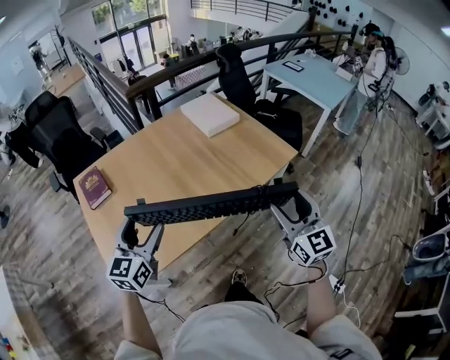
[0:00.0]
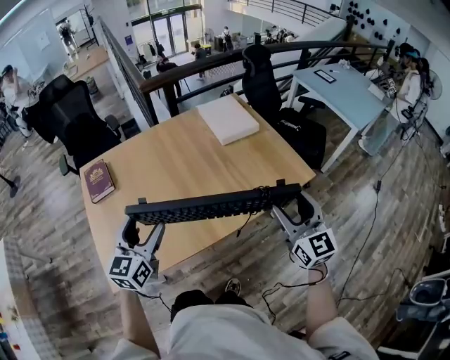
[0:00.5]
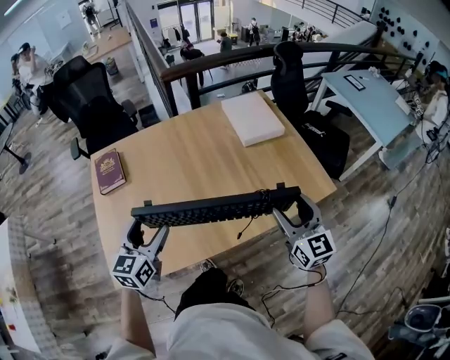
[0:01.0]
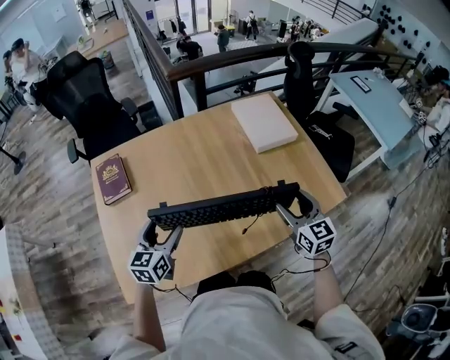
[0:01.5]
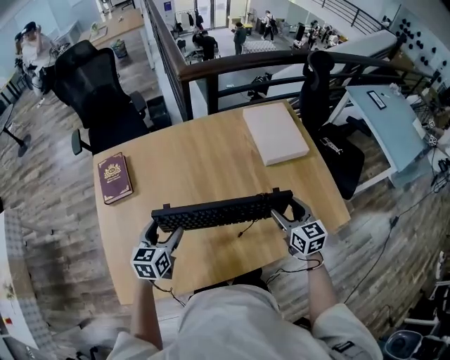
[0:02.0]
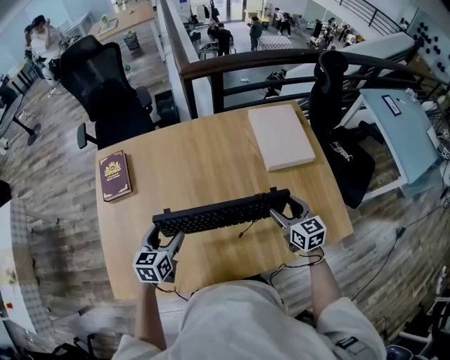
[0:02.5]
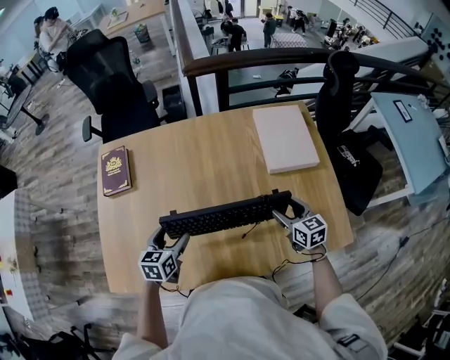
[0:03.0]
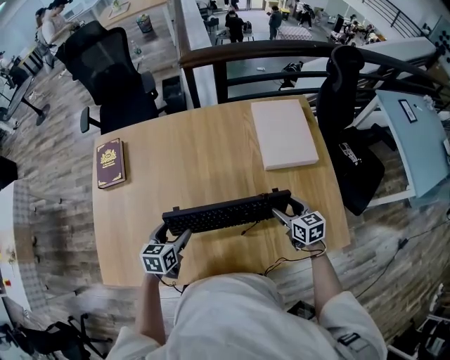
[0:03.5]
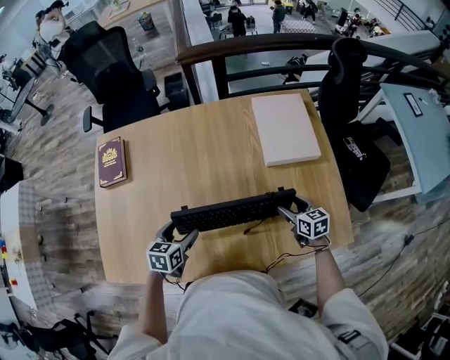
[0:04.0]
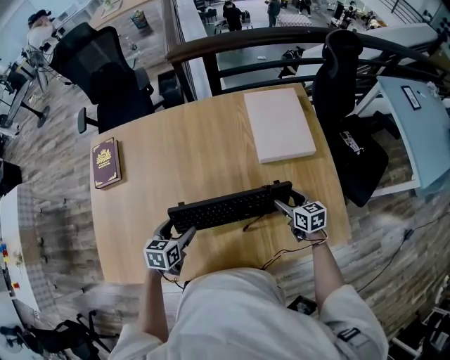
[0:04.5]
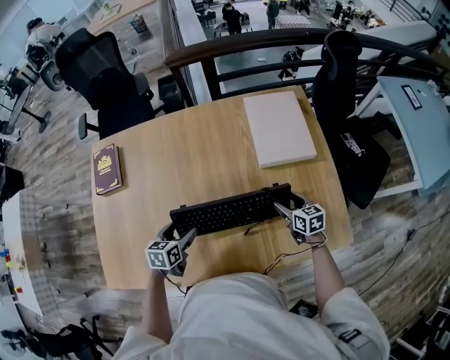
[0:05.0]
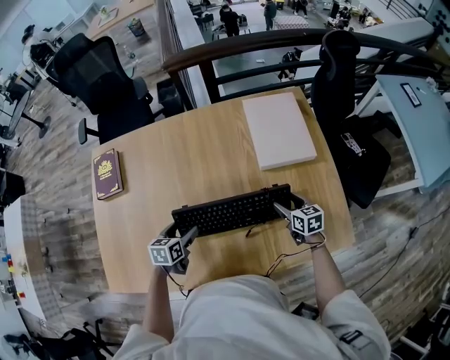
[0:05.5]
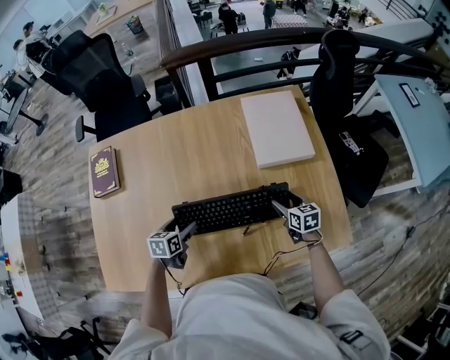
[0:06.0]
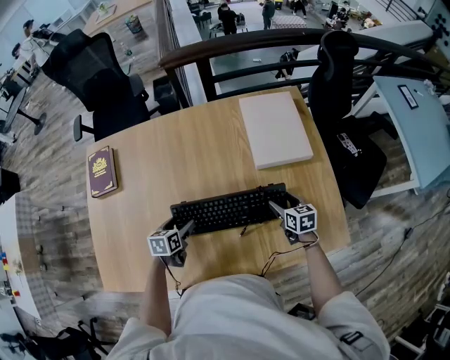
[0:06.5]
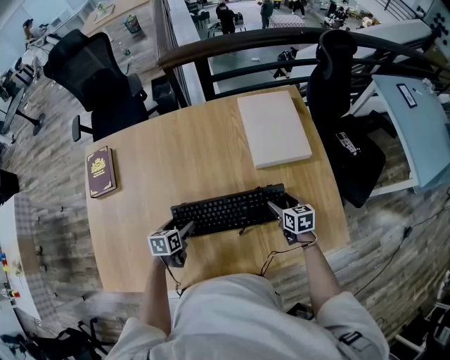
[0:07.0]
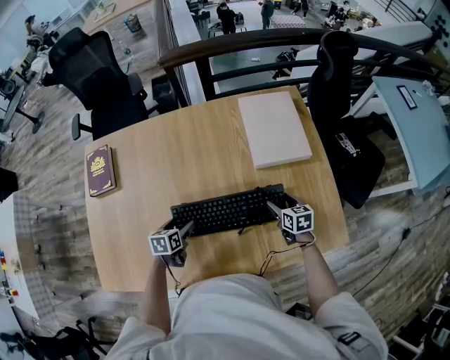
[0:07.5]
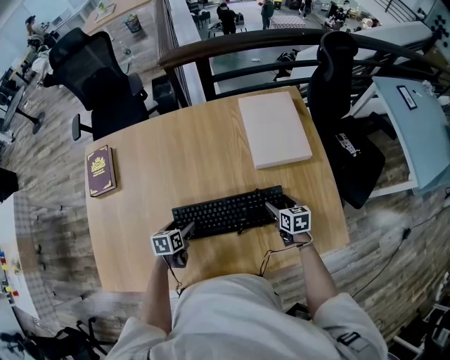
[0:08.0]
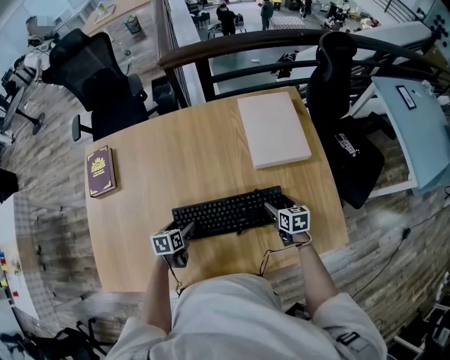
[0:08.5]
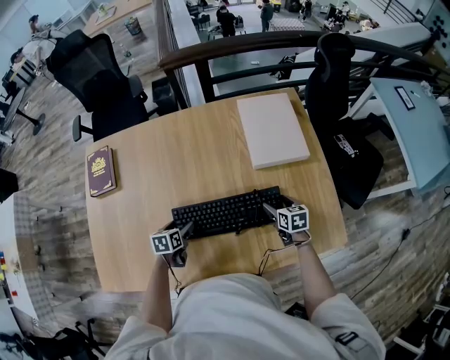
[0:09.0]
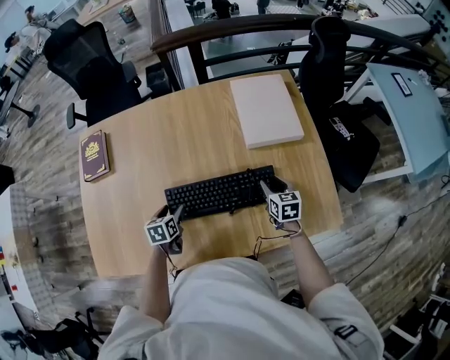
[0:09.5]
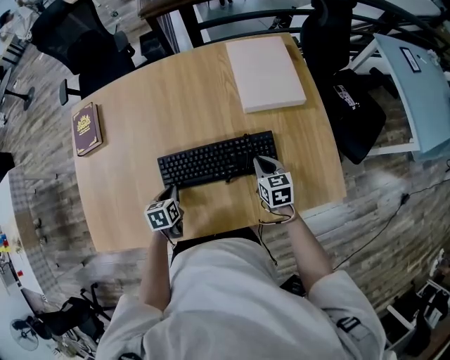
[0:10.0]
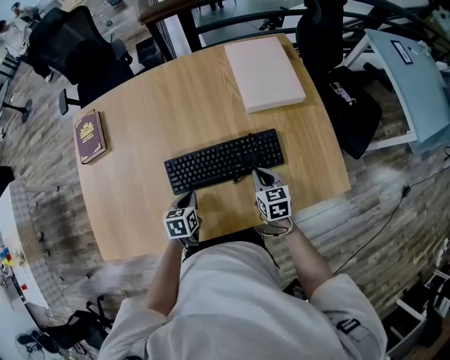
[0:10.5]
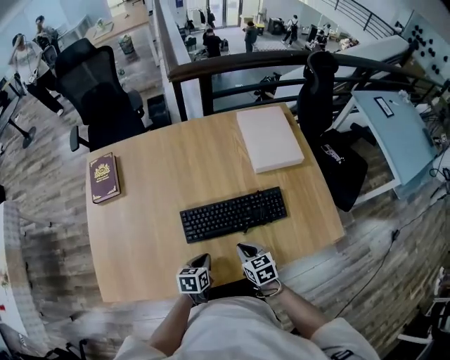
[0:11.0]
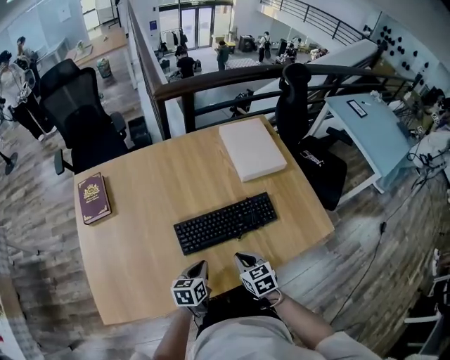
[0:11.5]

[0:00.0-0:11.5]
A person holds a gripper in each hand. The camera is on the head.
0:00.0 to 0:02.0: The right gripper goes some 40 cm forward and downward, and rotates some 30 degrees. Meanwhile the left gripper goes roughly 25 cm forward and downward, and swivels roughly 30 degrees.
0:02.0 to 0:04.0: The right gripper heads downward and to the right, covering about 20 cm, and rotates about 20 degrees. The left gripper goes roughly 15 cm to the right and downward.
0:04.0 to 0:06.0: The left gripper travels downward by some 5 cm.
0:06.0 to 0:07.5: The grippers make only small movements.
0:07.5 to 0:09.5: The right gripper closes.
0:09.5 to 0:11.5: The left gripper heads backward and to the right, covering approximately 10 cm, rotates about 20 degrees, and closes. Meanwhile the right gripper is displaced to the left and backward by about 25 cm, and closes.

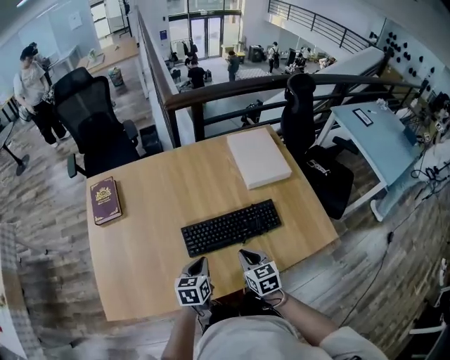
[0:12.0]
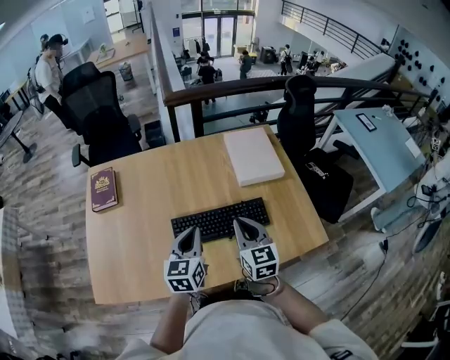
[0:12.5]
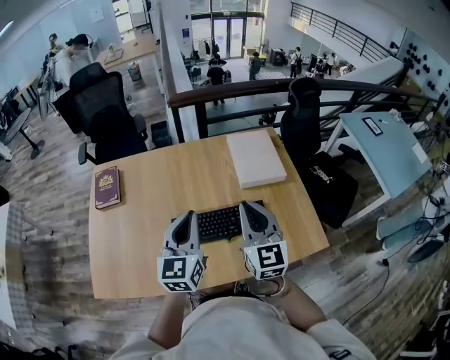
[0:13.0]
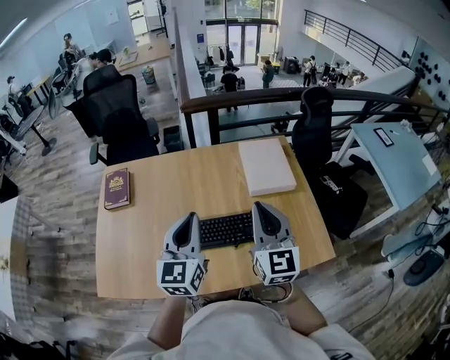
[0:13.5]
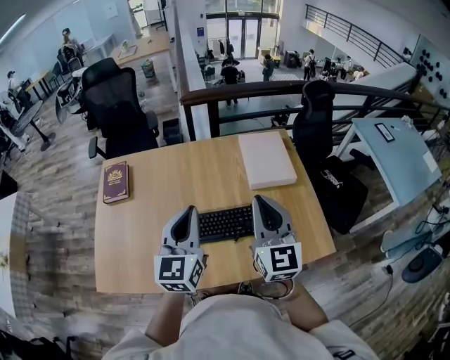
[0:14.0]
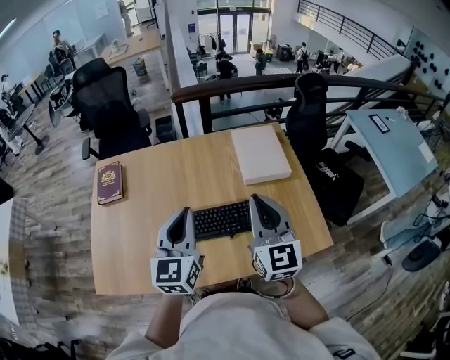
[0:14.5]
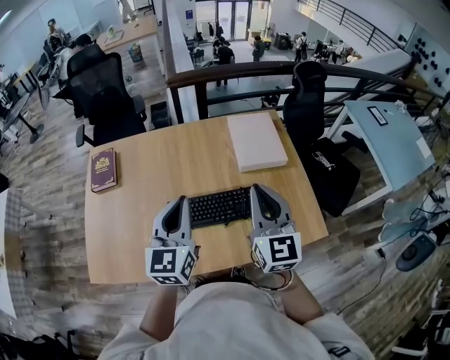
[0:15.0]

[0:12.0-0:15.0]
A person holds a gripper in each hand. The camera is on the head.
0:12.0 to 0:13.5: The grippers both shift upward by about 30 cm. The left gripper tilts its fingers approximately 30 degrees upward; the right gripper tips its fingers upward by about 40 degrees.
0:13.5 to 0:15.0: The grippers make only small movements.

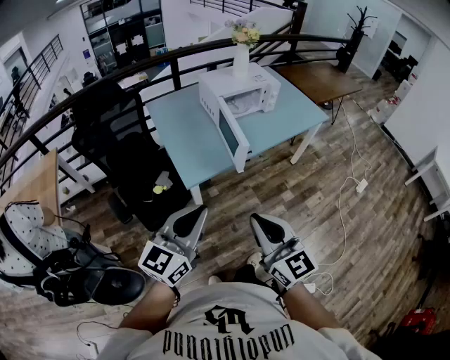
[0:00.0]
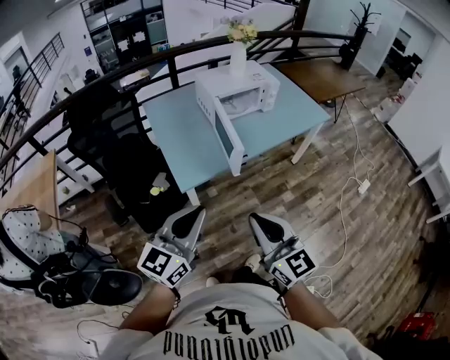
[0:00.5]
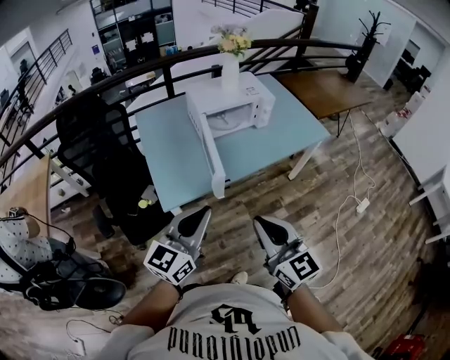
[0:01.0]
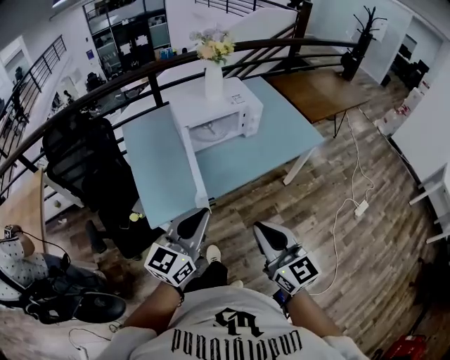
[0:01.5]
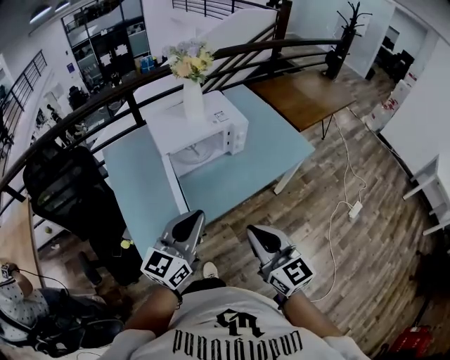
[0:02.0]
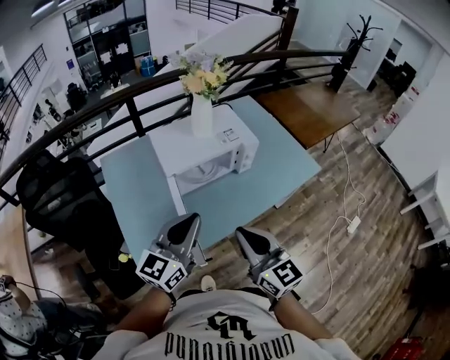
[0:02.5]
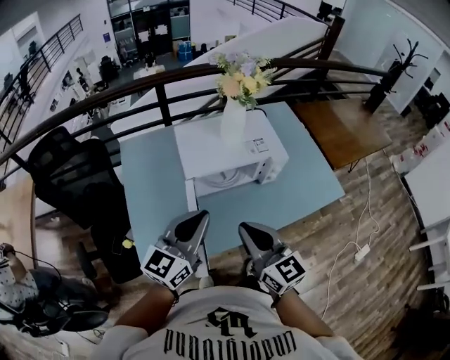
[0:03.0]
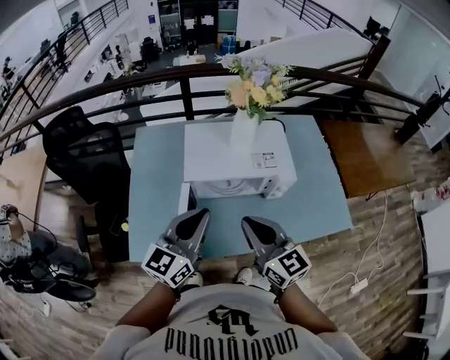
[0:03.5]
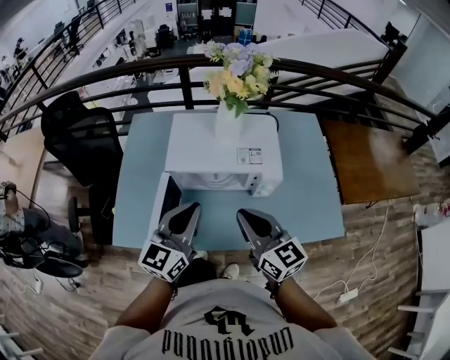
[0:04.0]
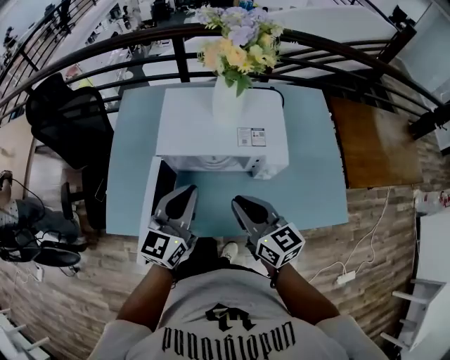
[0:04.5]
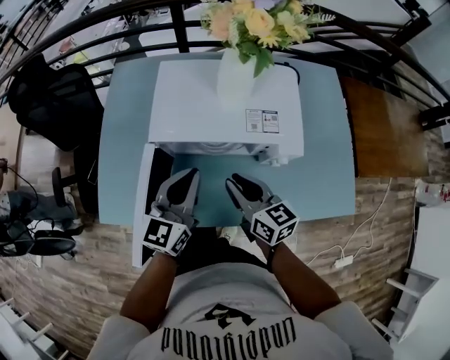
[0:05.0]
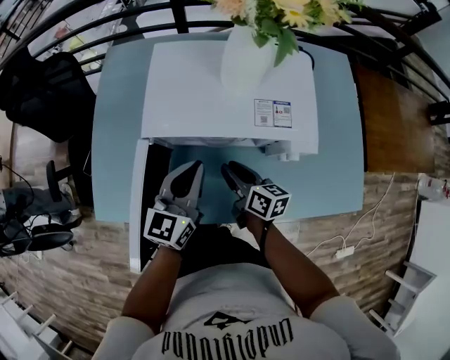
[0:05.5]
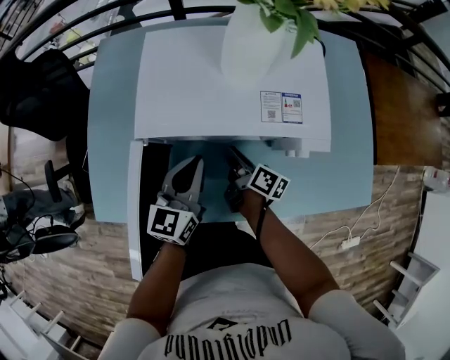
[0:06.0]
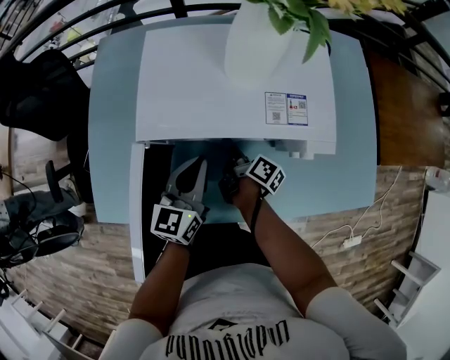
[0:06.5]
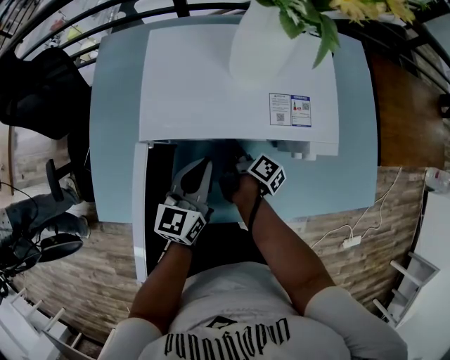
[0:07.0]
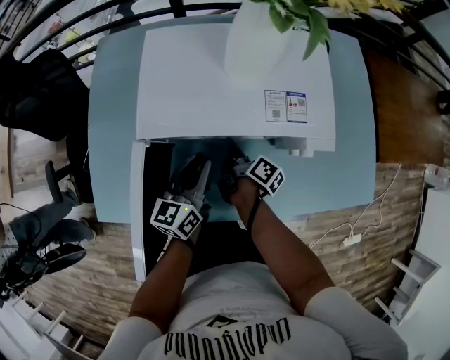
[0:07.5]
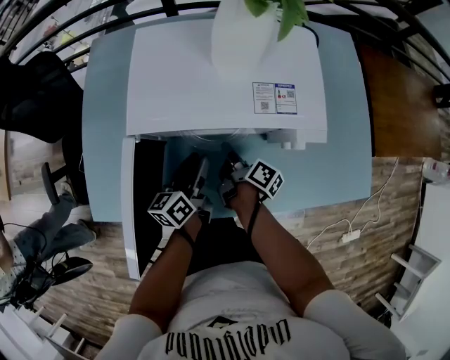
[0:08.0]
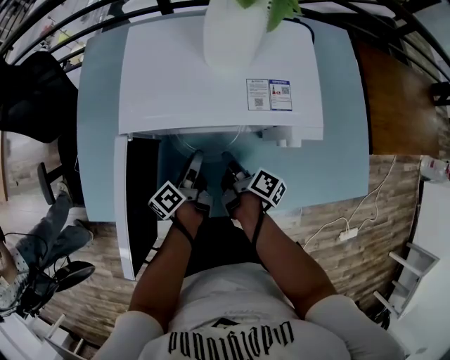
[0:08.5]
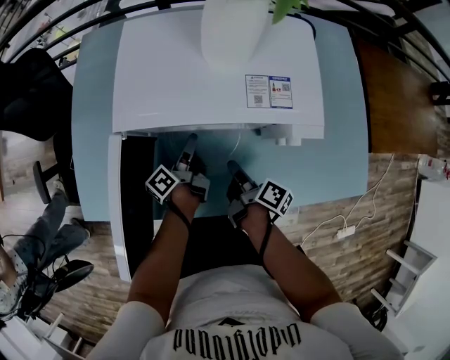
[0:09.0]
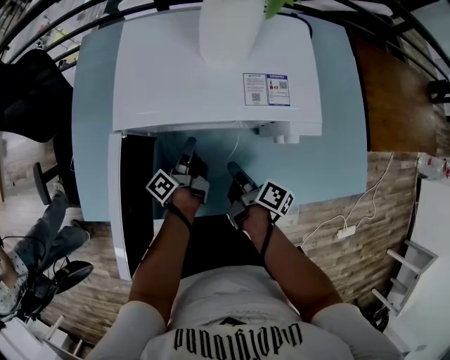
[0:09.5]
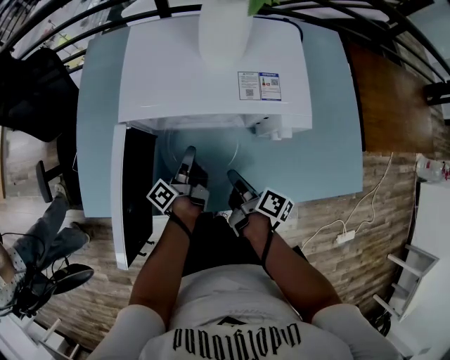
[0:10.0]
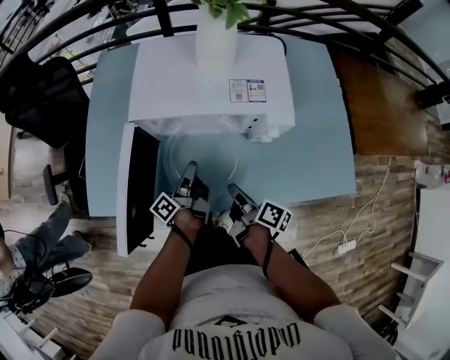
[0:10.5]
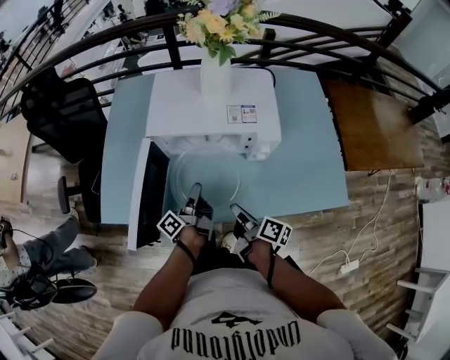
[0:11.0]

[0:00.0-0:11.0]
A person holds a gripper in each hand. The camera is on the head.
0:00.0 to 0:02.0: The two grippers go approximately 40 cm forward and to the right.
0:02.0 to 0:03.5: Both grippers move forward, approximately 25 cm. The left gripper rotates about 20 degrees. The right gripper rotates roughly 30 degrees.
0:03.5 to 0:05.5: Both grippers move downward and forward, roughly 30 cm. The right gripper rotates roughly 40 degrees, and opens up.
0:05.5 to 0:07.5: The left gripper moves downward, roughly 10 cm, while the right gripper goes approximately 10 cm downward and forward, and rotates around the line of its fingers by about 40 degrees, clockwise from behind.
0:07.5 to 0:09.0: The left gripper shifts roughly 15 cm downward, rolls counterclockwise, seen from behind, by about 60 degrees, and opens. Meanwhile the right gripper shifts roughly 10 cm backward.
0:09.0 to 0:11.0: Both grippers move backward and upward, some 20 cm. The left gripper closes its fingers.

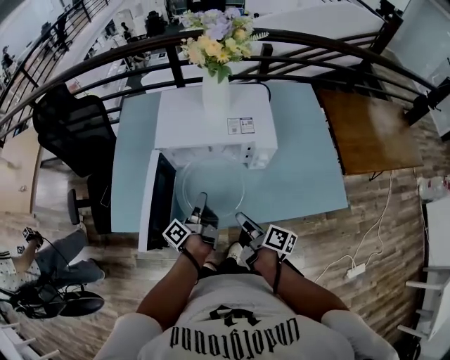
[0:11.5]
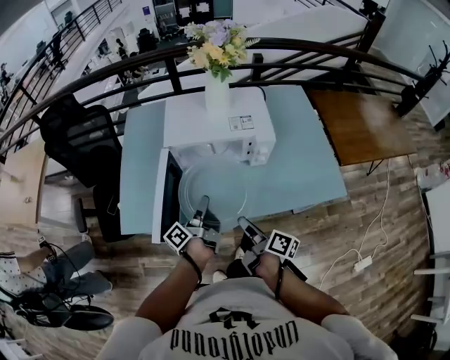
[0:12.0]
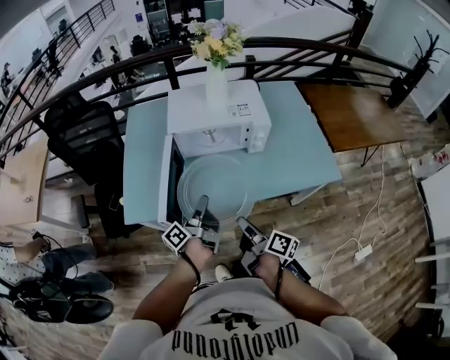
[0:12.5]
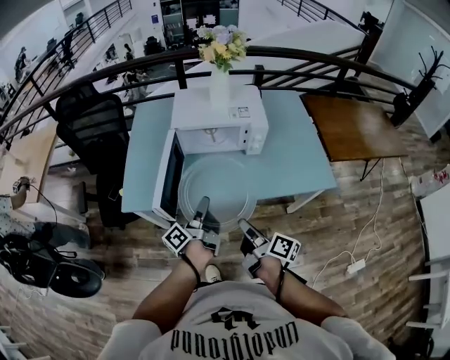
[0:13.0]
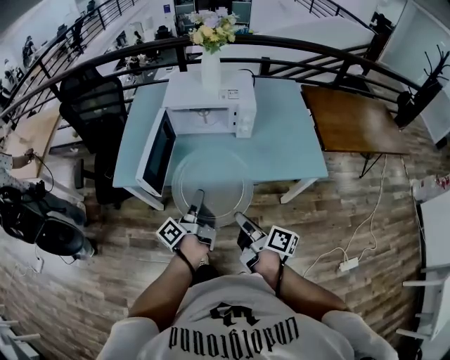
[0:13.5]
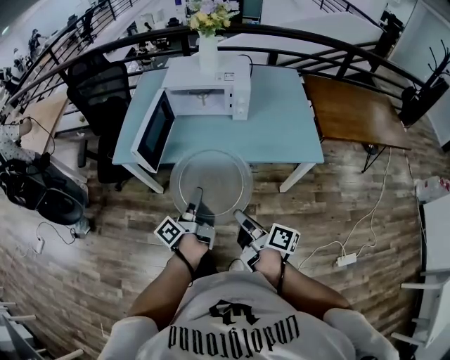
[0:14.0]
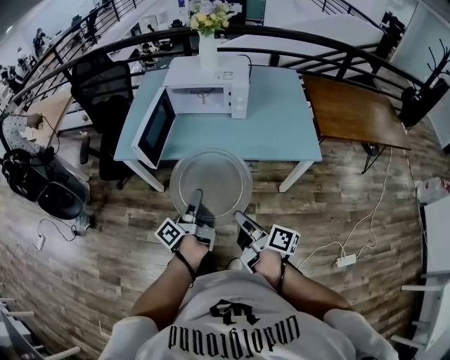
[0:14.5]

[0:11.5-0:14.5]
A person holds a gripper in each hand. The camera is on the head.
0:11.5 to 0:13.0: The grippers both shift backward and upward by about 20 cm.
0:13.0 to 0:14.5: The left gripper travels backward by some 20 cm. Meanwhile the right gripper goes about 20 cm backward and to the right.
